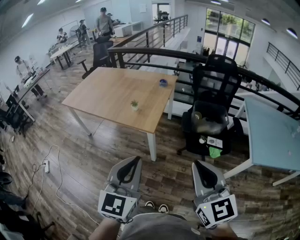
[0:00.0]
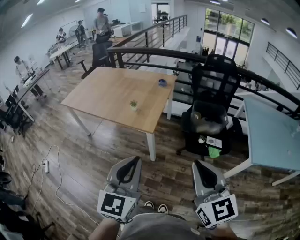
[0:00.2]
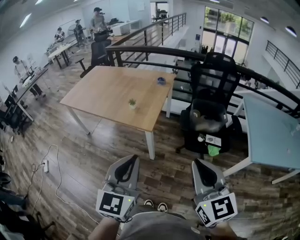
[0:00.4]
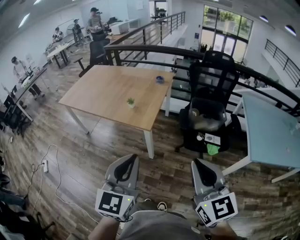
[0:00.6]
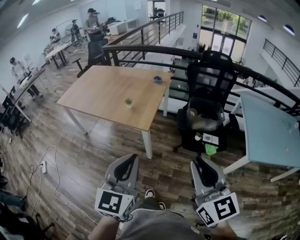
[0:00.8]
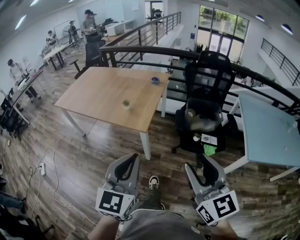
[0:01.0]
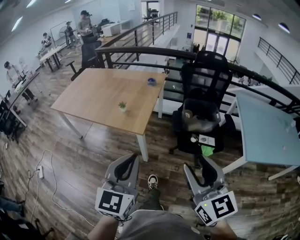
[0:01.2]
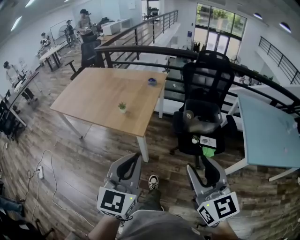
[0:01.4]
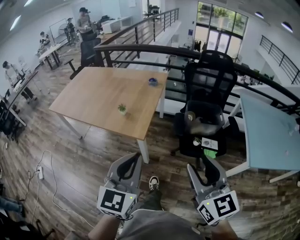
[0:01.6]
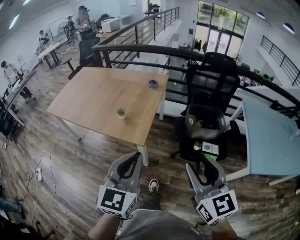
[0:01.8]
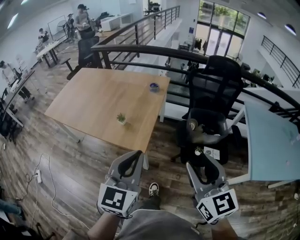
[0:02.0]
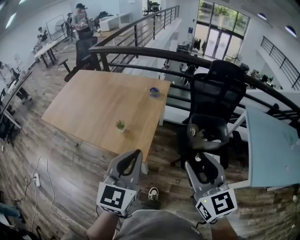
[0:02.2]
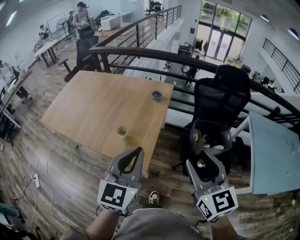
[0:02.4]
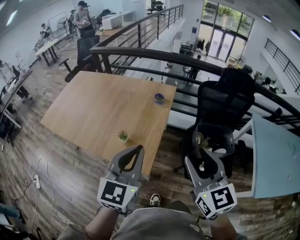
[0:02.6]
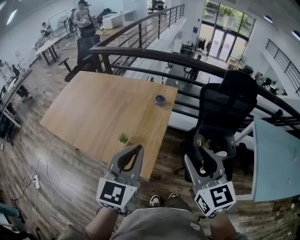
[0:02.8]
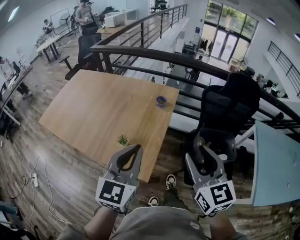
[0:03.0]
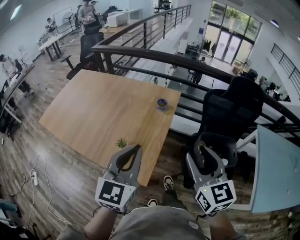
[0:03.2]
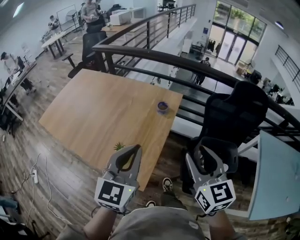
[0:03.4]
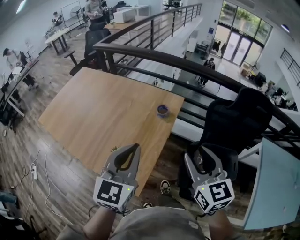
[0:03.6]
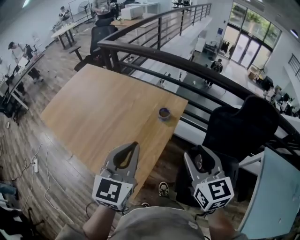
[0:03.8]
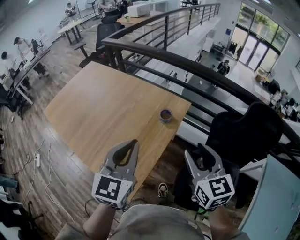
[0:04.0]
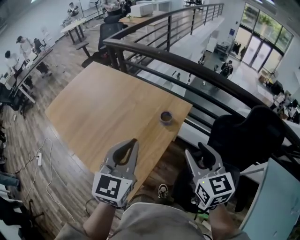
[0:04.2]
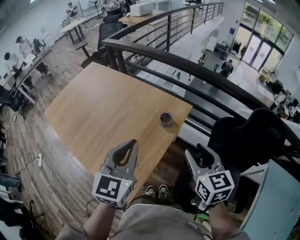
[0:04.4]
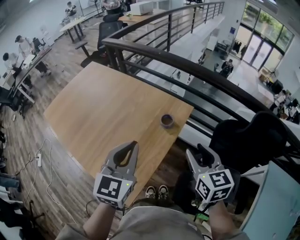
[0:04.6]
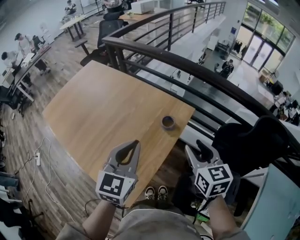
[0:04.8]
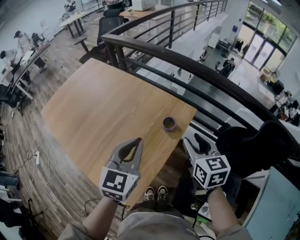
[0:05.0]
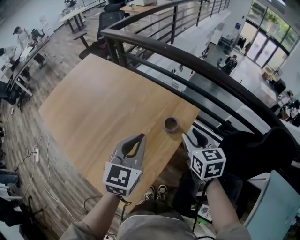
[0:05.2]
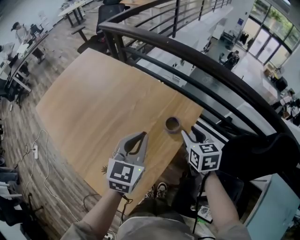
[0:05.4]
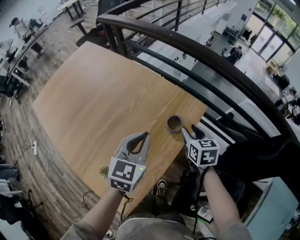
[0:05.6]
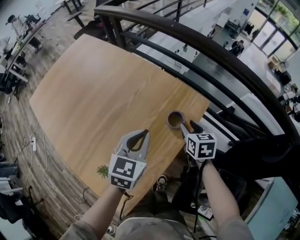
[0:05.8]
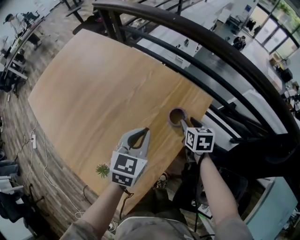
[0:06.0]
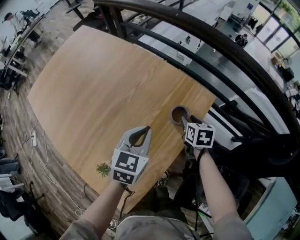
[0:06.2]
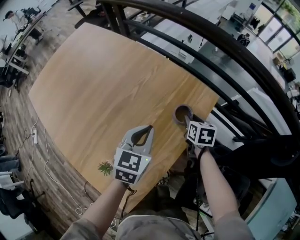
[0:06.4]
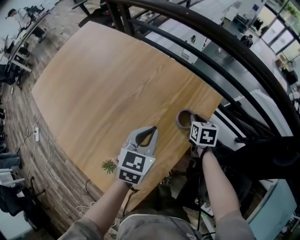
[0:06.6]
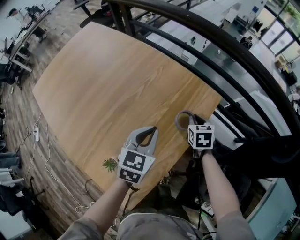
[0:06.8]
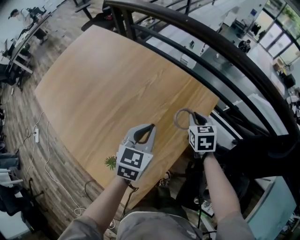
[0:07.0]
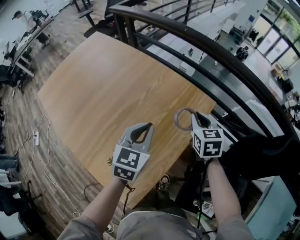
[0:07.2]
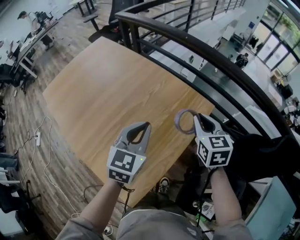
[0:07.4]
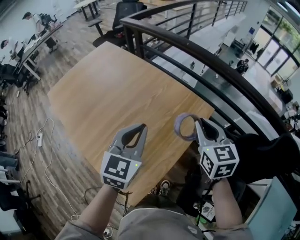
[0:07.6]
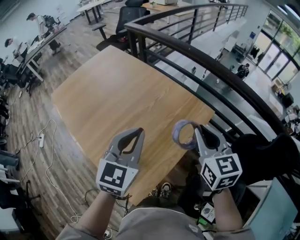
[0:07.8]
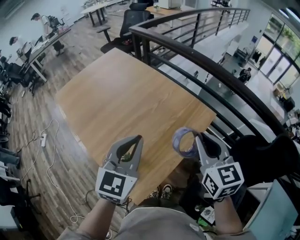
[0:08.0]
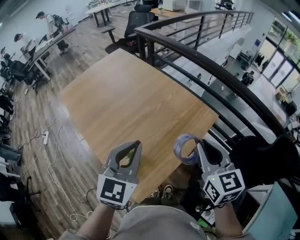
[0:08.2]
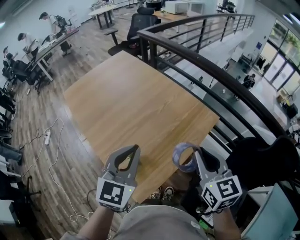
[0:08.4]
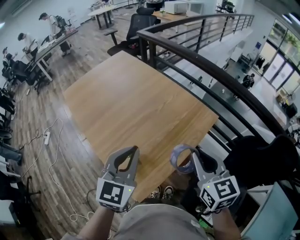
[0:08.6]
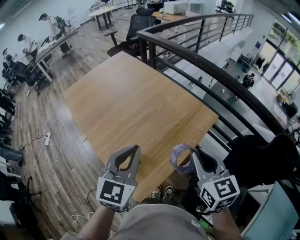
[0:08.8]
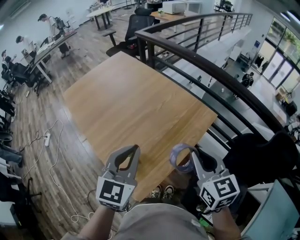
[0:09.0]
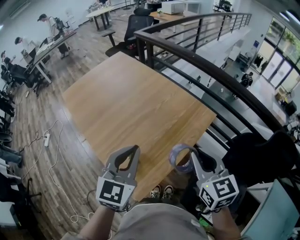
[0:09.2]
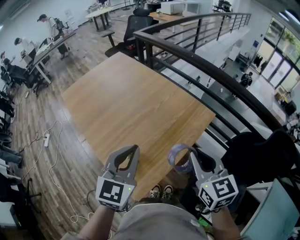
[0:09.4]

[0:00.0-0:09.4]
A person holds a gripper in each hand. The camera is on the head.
0:00.0 to 0:01.6: Both grippers move forward, about 10 cm. The right gripper opens up.
0:01.6 to 0:03.2: The grippers both shift forward by approximately 40 cm.
0:03.2 to 0:04.8: The grippers both shift forward by some 25 cm.
0:04.8 to 0:06.2: Both grippers move downward and forward, some 35 cm. The right gripper swivels roughly 30 degrees. Meanwhile the left gripper rotates some 20 degrees.
0:06.2 to 0:07.8: The left gripper goes approximately 25 cm upward, backward and to the left, and swivels roughly 20 degrees. The right gripper travels upward and backward by some 35 cm, changes its angle by about 40 degrees, and closes up.
0:07.8 to 0:09.4: The two grippers go roughly 10 cm backward.

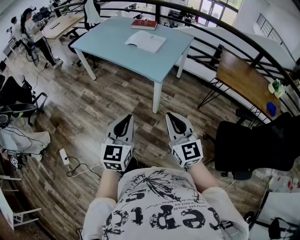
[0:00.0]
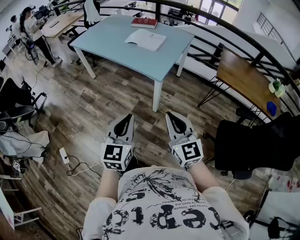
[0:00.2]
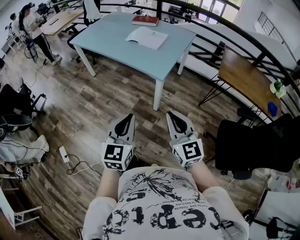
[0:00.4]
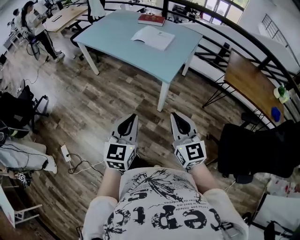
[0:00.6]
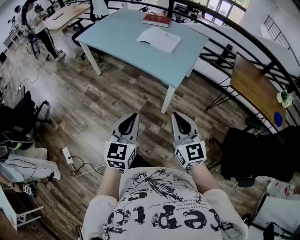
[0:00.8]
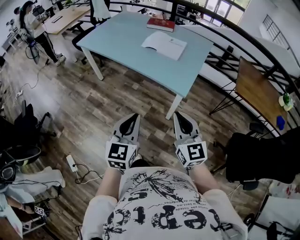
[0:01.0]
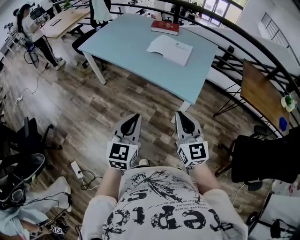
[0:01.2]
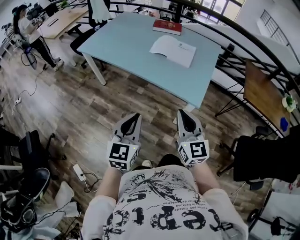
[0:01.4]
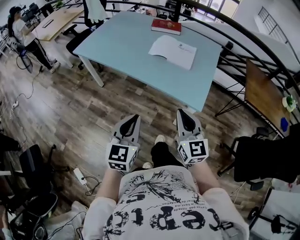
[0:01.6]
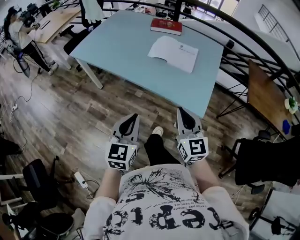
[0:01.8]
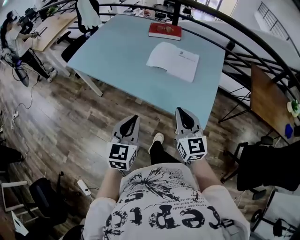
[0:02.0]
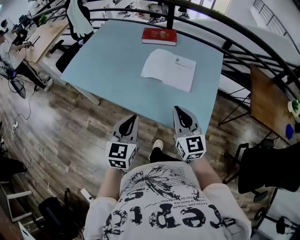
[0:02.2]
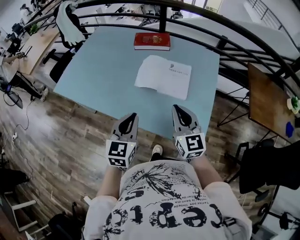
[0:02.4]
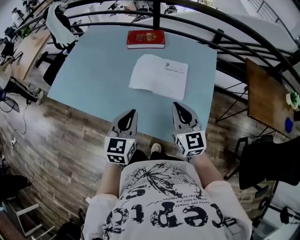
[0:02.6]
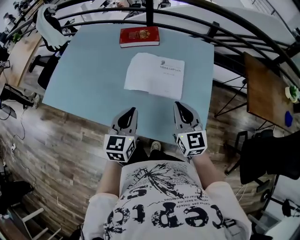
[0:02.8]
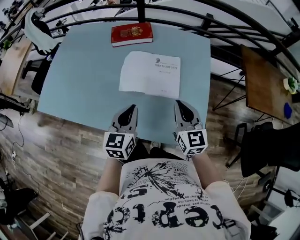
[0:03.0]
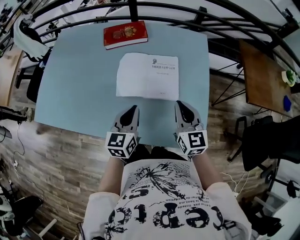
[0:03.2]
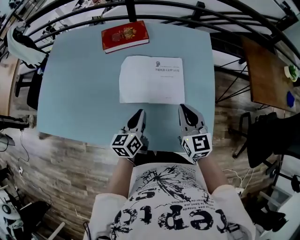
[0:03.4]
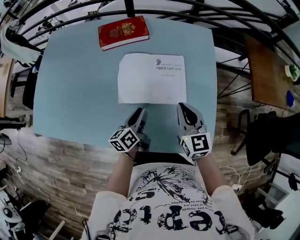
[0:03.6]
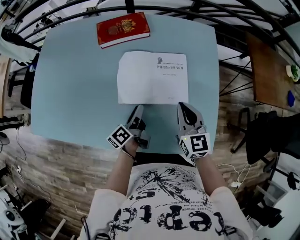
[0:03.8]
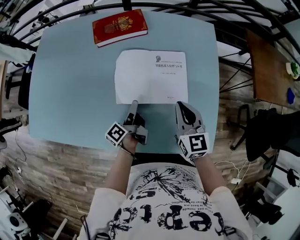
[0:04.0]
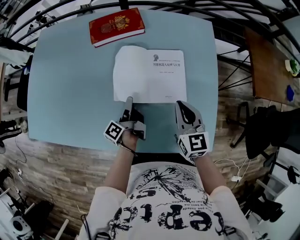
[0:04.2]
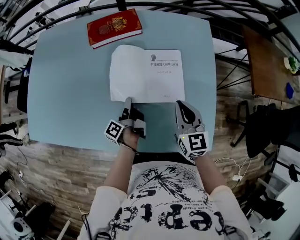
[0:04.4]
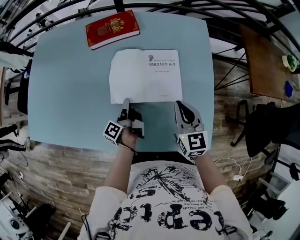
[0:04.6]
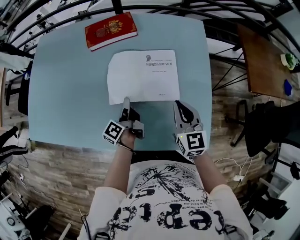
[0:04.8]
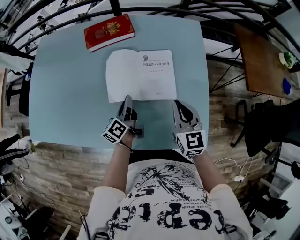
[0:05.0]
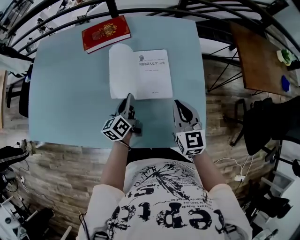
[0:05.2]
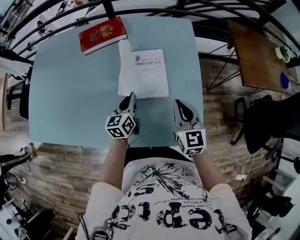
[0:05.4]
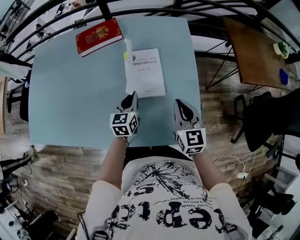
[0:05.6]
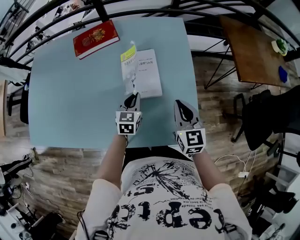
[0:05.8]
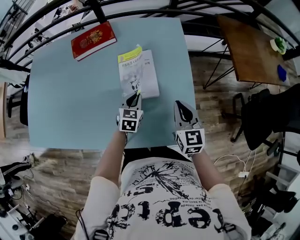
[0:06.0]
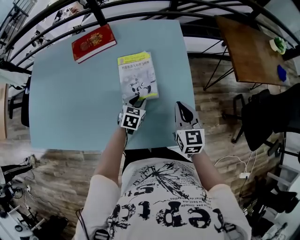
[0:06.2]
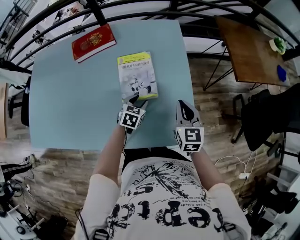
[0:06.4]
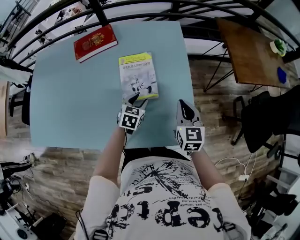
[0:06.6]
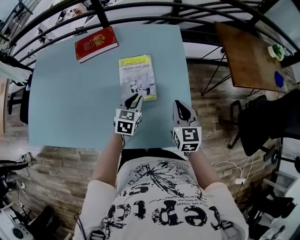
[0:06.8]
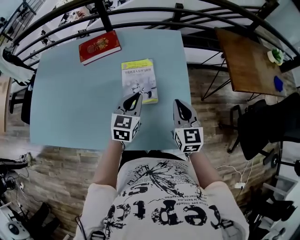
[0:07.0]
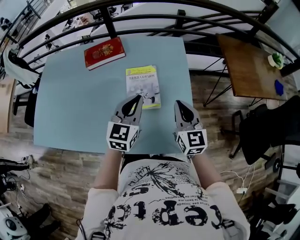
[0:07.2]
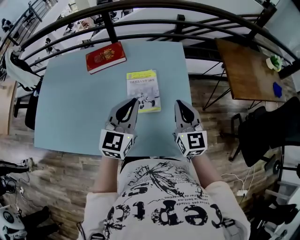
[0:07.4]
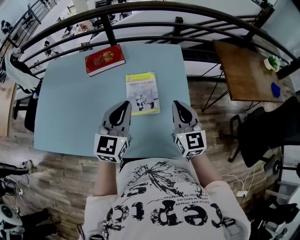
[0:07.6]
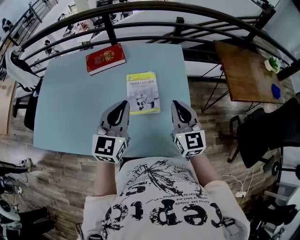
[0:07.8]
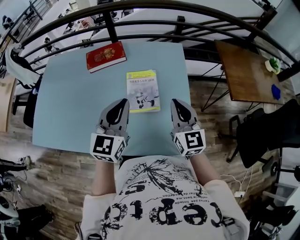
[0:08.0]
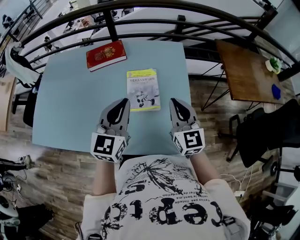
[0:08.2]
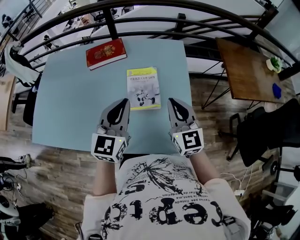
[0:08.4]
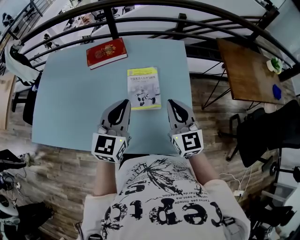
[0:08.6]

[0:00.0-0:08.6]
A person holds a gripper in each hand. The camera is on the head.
0:00.0 to 0:01.4: Both grippers move forward and to the left, approximately 35 cm.
0:01.4 to 0:02.8: The two grippers travel together, forward, approximately 40 cm.
0:02.8 to 0:04.4: The left gripper is displaced downward and forward by some 30 cm, rotates around the line of its fingers by about 90 degrees, counterclockwise from behind, and opens, then closes again. The right gripper travels forward and downward by roughly 15 cm.
0:04.4 to 0:05.8: The left gripper heads to the right, covering some 15 cm, and rolls clockwise, seen from behind, by roughly 90 degrees; the right gripper goes about 10 cm to the right and backward.
0:05.8 to 0:07.2: The left gripper moves upward, roughly 20 cm, and opens, then closes again; the right gripper goes some 10 cm upward.
0:07.2 to 0:08.6: The left gripper heads upward and to the left, covering roughly 5 cm. Meanwhile the right gripper changes place by some 5 cm.

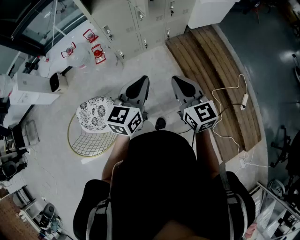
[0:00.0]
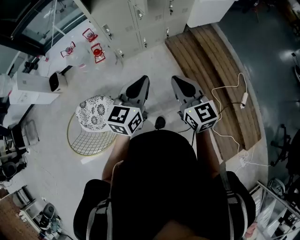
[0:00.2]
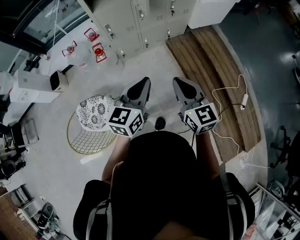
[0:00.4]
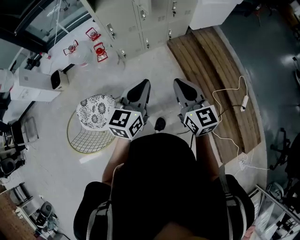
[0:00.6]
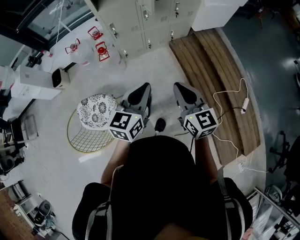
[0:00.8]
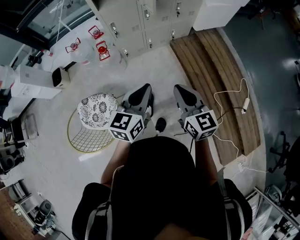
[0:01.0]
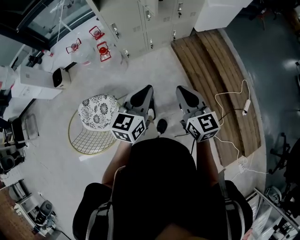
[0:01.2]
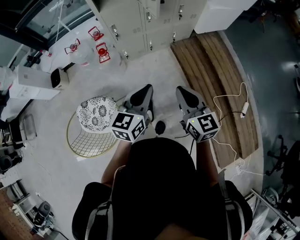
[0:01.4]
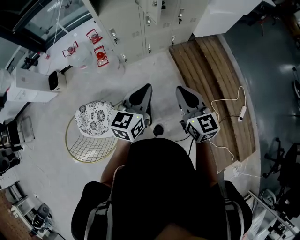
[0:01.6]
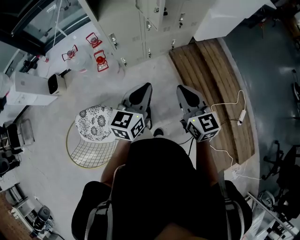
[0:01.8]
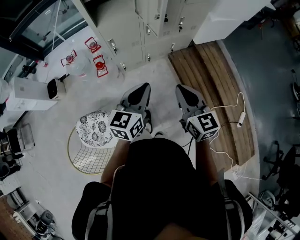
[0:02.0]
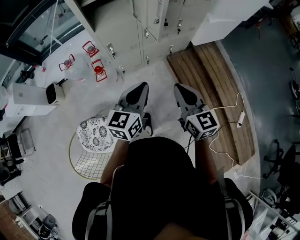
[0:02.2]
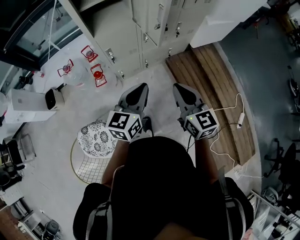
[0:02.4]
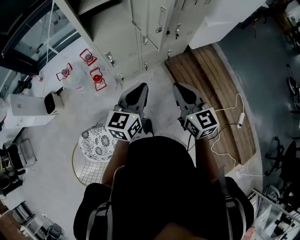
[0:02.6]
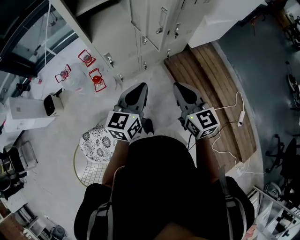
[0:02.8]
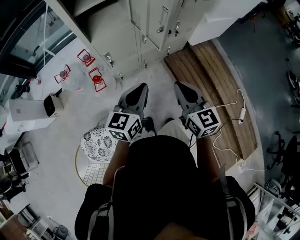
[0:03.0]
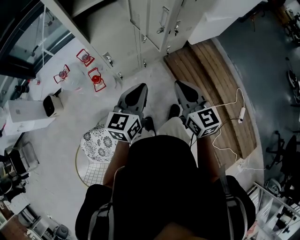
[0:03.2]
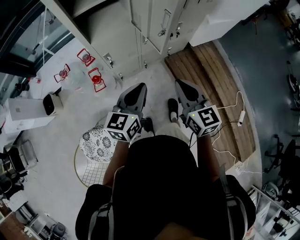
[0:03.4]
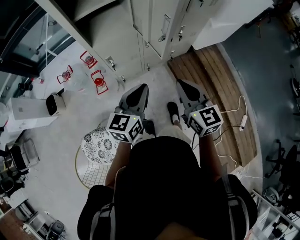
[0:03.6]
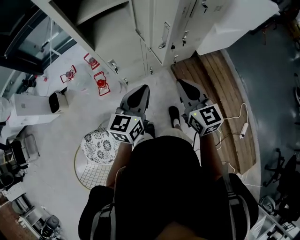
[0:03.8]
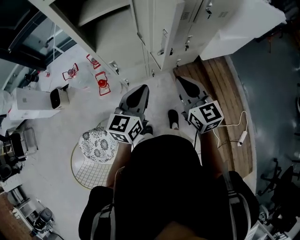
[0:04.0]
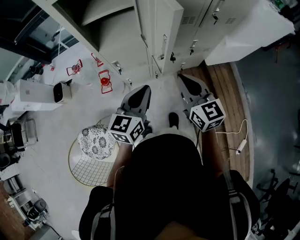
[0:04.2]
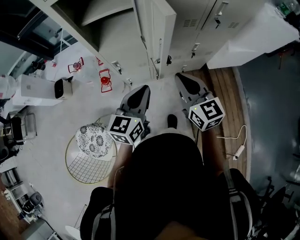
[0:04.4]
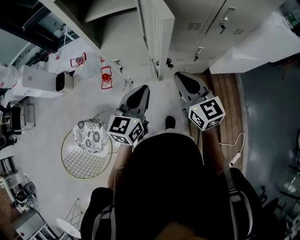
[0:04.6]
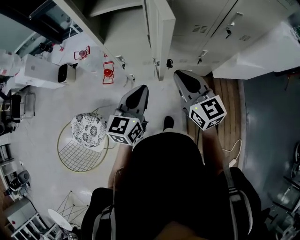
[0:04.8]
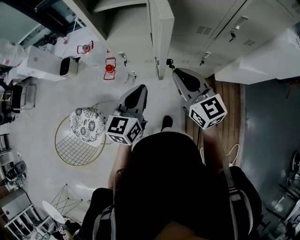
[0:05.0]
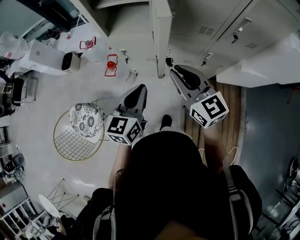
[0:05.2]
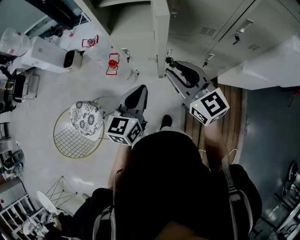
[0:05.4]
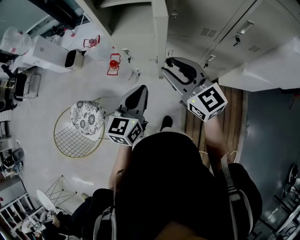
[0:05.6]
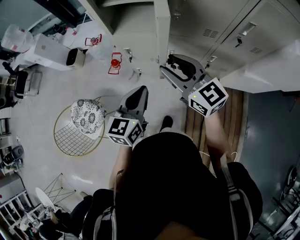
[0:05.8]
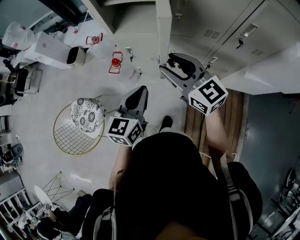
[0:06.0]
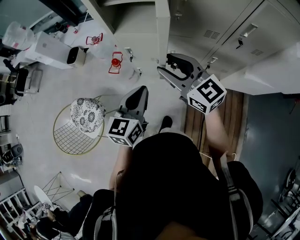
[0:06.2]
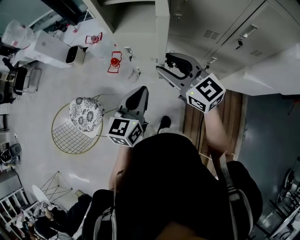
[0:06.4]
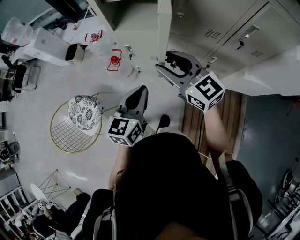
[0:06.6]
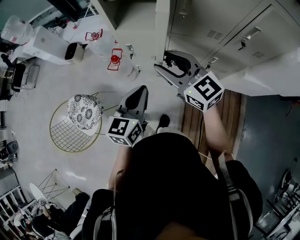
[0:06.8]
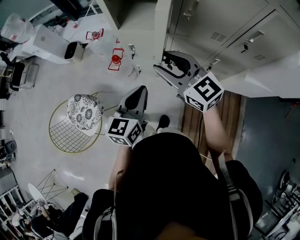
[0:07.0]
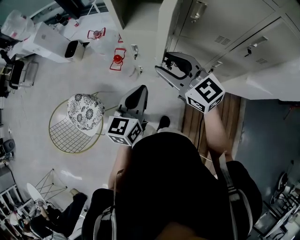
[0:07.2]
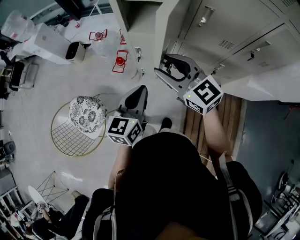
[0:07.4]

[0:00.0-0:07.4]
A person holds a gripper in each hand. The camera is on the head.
0:00.0 to 0:01.4: The grippers stay close to where they were, moving slightly.
0:01.4 to 0:03.0: Both grippers move forward, about 25 cm.
0:03.0 to 0:04.4: The left gripper heads forward and to the right, covering roughly 15 cm. Meanwhile the right gripper travels forward by roughly 15 cm, and rotates some 20 degrees.
0:04.4 to 0:06.0: The left gripper turns by roughly 20 degrees. The right gripper shifts by roughly 5 cm, turns by some 40 degrees, and opens its fingers.
0:06.0 to 0:07.4: The two grippers go some 10 cm to the left.
